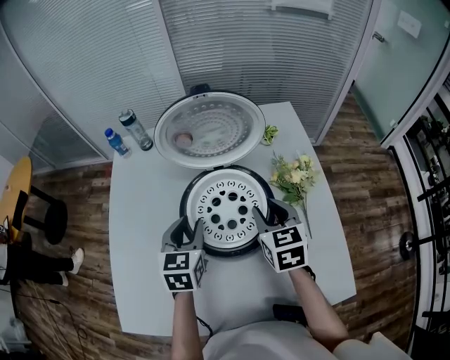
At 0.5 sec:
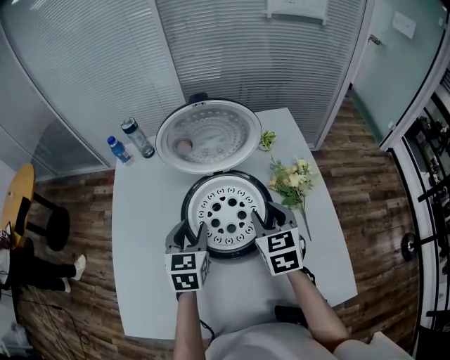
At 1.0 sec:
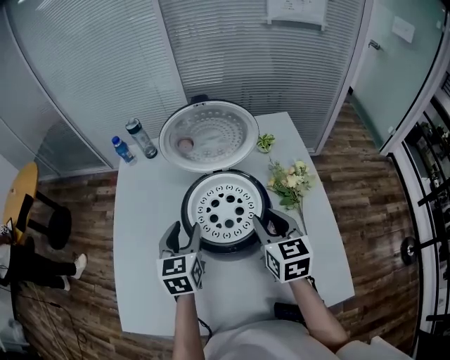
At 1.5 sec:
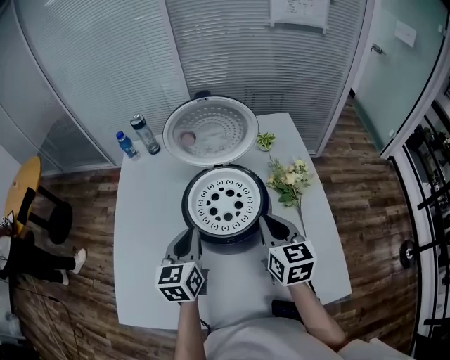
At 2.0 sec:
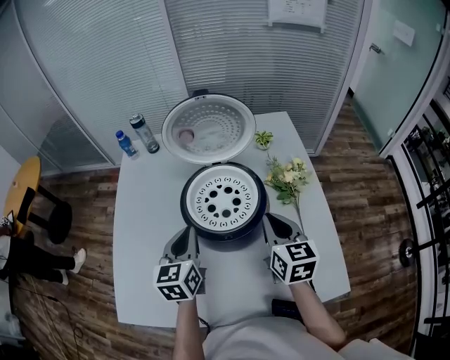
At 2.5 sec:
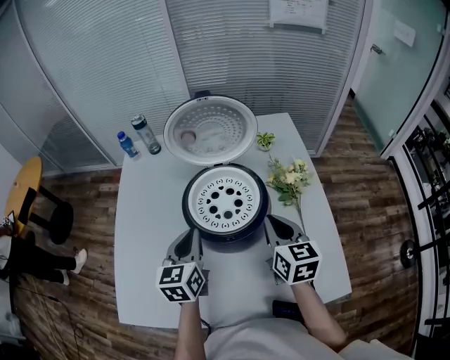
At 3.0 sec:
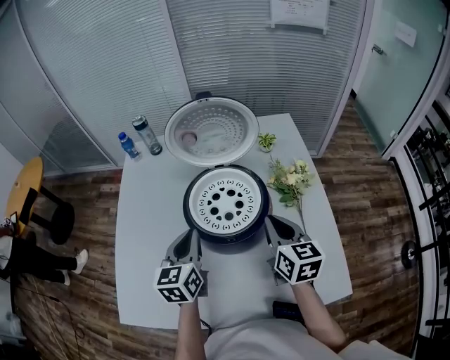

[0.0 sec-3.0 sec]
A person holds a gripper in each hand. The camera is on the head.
0.0 sec to 1.5 sec: Both grippers move backward, roughly 5 cm. The left gripper closes up; the right gripper closes.
1.5 sec to 3.0 sec: There are only small adjustments of the grippers.

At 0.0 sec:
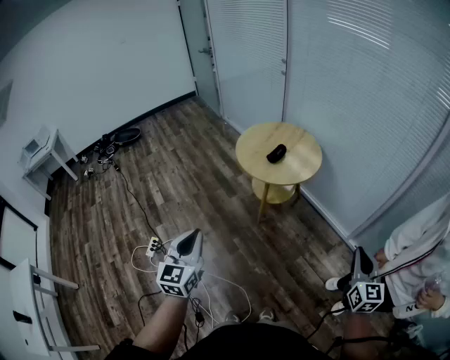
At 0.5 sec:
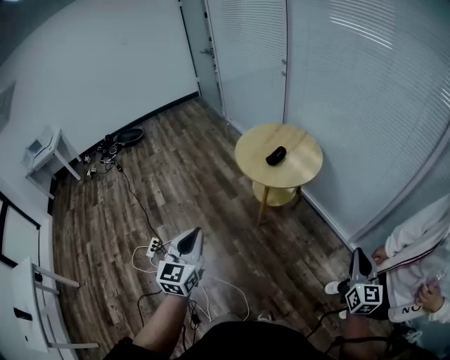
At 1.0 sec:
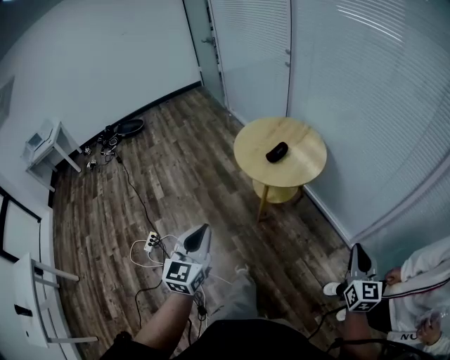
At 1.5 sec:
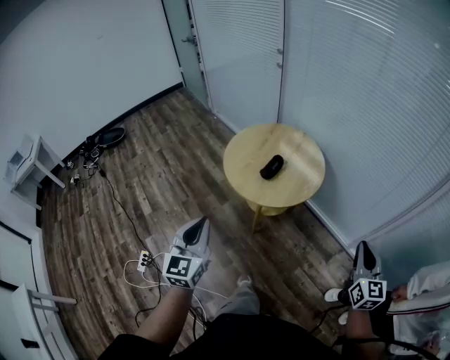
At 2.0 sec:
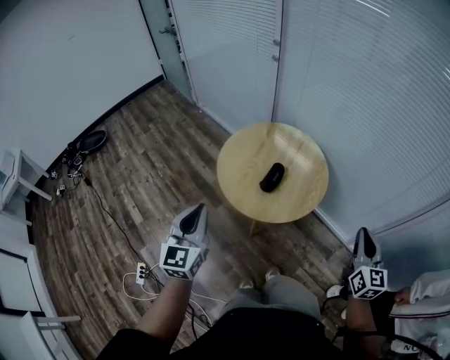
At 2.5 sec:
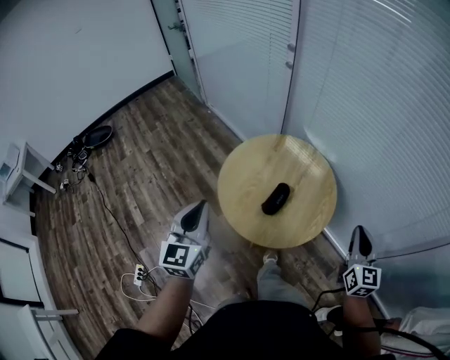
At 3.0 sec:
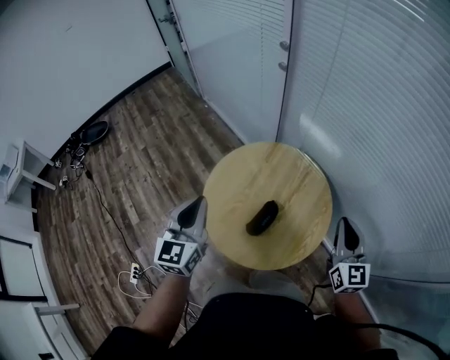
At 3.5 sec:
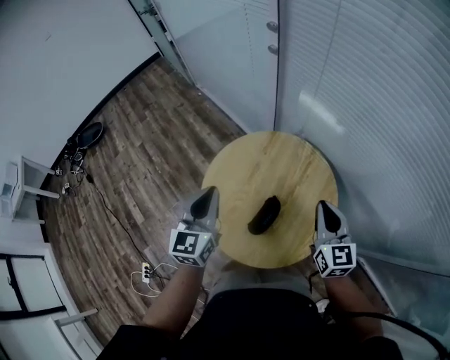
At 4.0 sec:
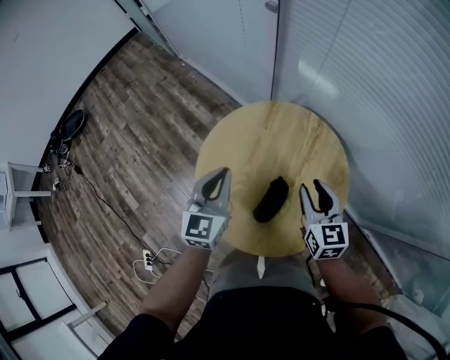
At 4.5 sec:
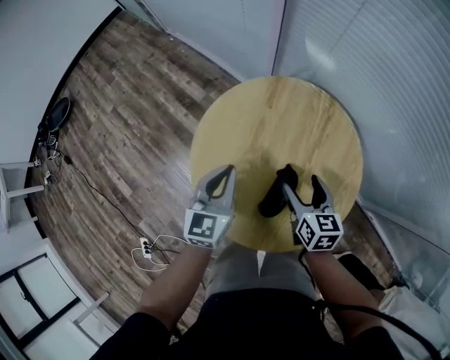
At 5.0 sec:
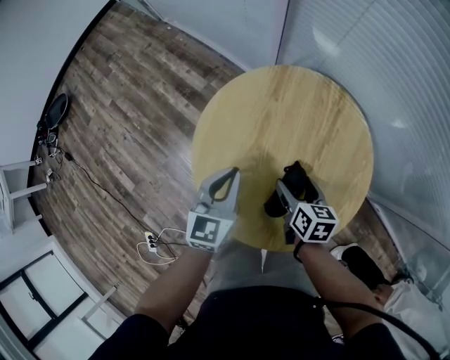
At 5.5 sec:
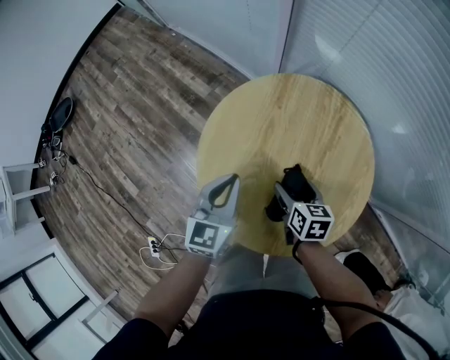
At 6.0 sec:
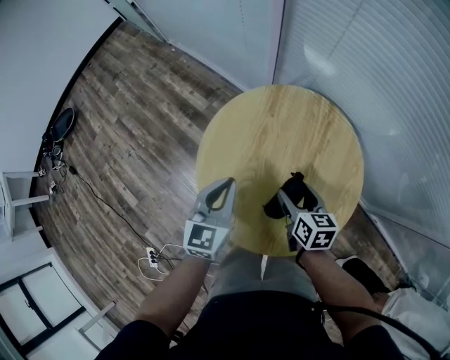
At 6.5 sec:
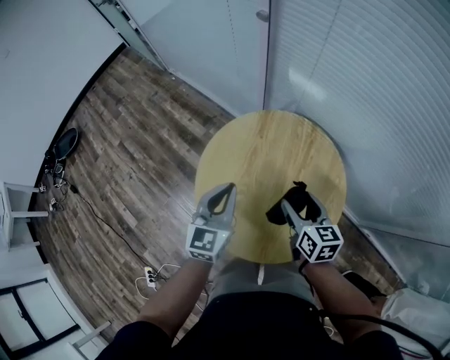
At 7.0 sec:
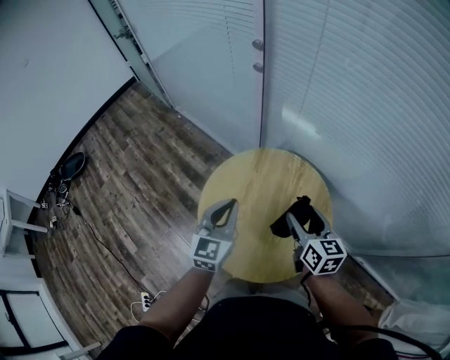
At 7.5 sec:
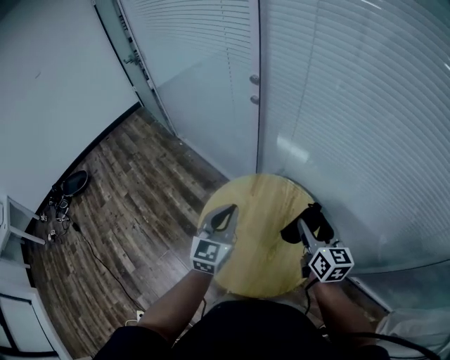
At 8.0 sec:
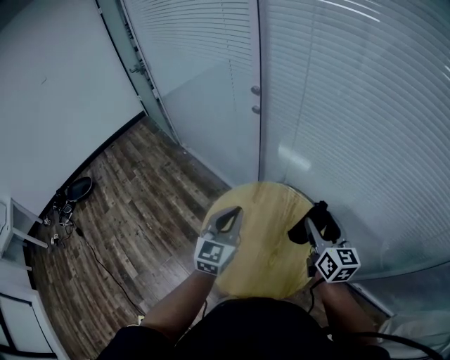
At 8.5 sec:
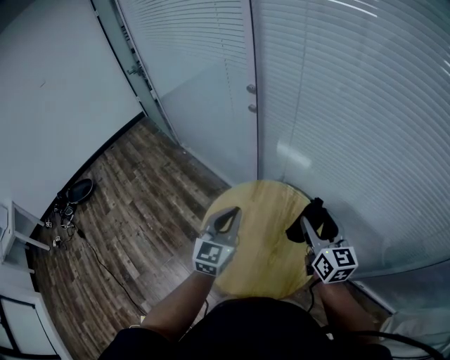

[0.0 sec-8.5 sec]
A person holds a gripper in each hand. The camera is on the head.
0.0 sec to 2.0 sec: The two grippers go about 40 cm forward.
2.0 sec to 4.0 sec: Both grippers are carried forward, some 40 cm. The right gripper turns by roughly 20 degrees.
4.0 sec to 6.5 sec: The left gripper goes downward and returns, about 15 cm each way. The right gripper goes downward and returns, approximately 20 cm each way, and opens its fingers.
6.5 sec to 8.5 sec: The left gripper is displaced upward by approximately 15 cm; the right gripper goes roughly 25 cm upward and to the right, and changes its angle by approximately 30 degrees.

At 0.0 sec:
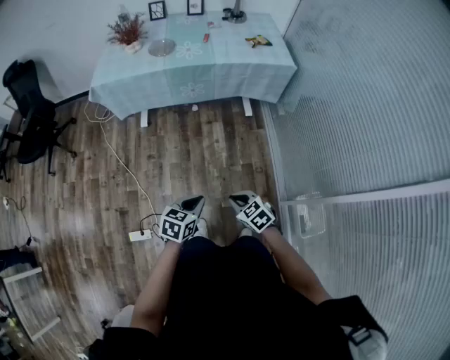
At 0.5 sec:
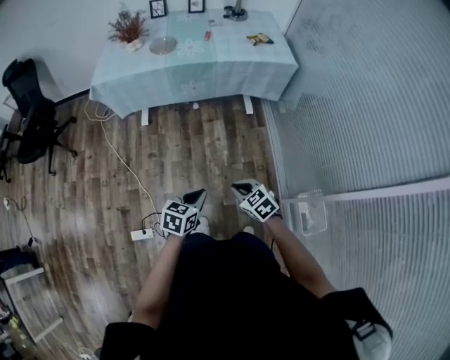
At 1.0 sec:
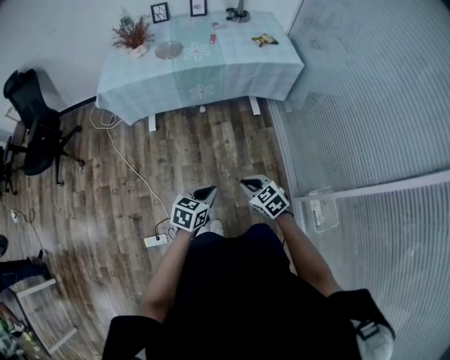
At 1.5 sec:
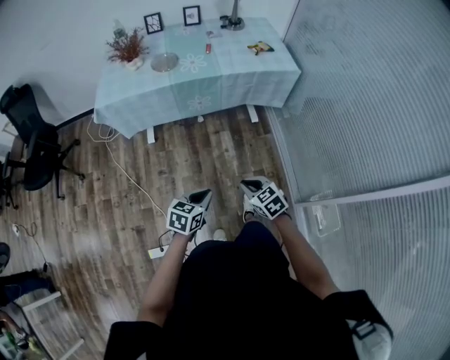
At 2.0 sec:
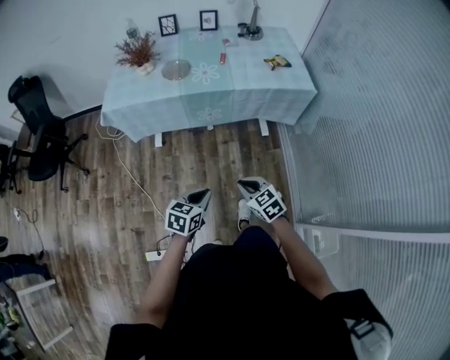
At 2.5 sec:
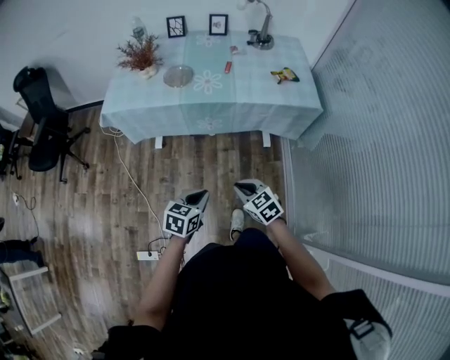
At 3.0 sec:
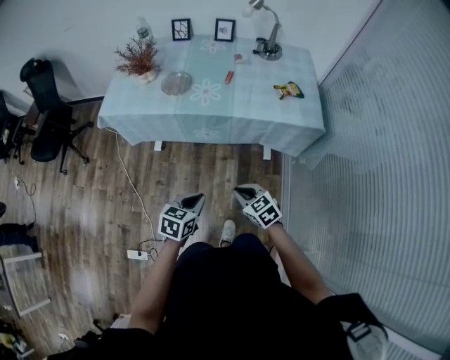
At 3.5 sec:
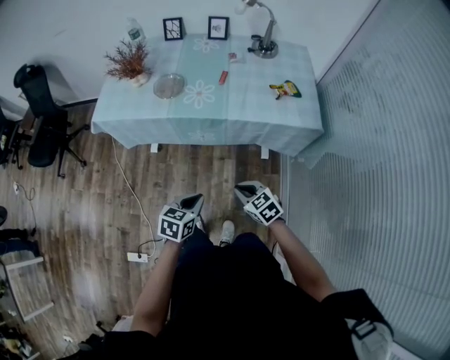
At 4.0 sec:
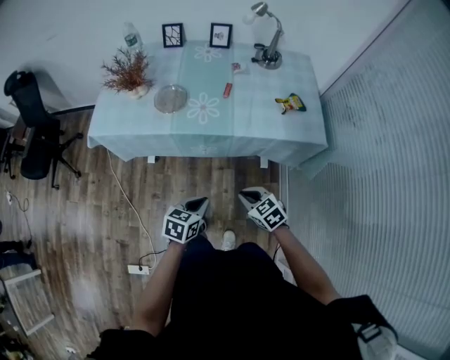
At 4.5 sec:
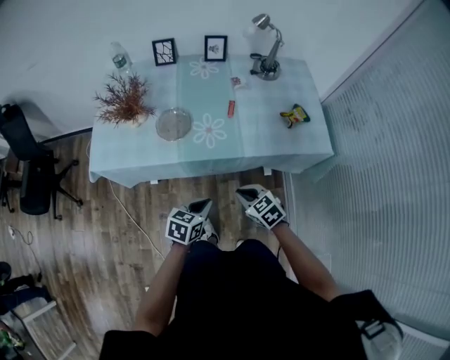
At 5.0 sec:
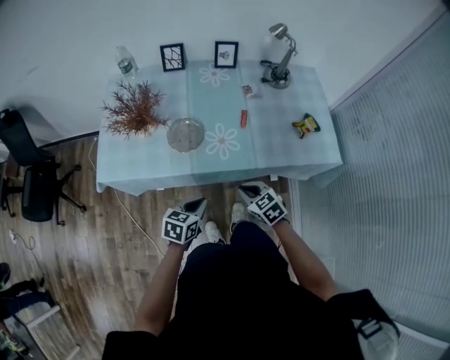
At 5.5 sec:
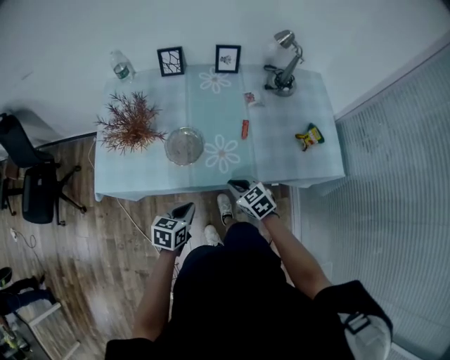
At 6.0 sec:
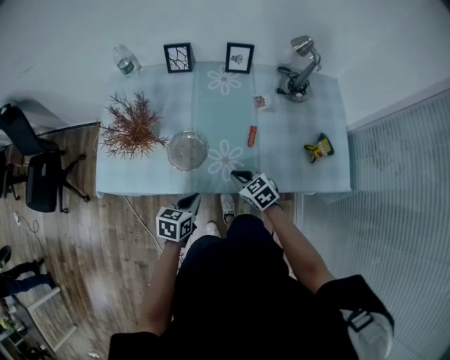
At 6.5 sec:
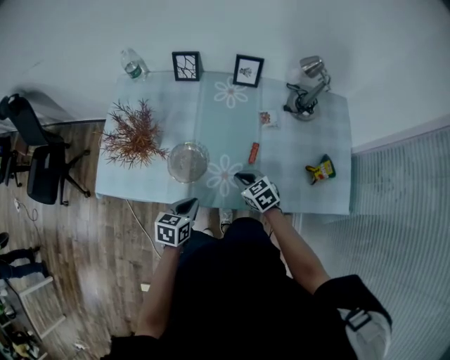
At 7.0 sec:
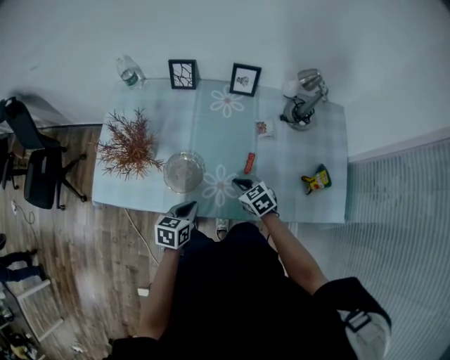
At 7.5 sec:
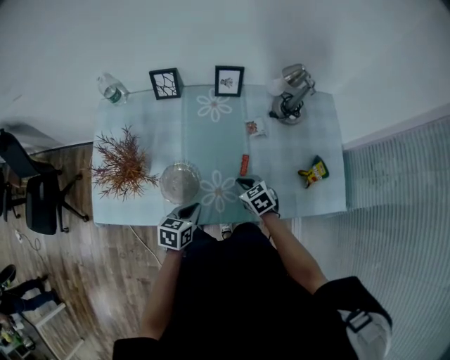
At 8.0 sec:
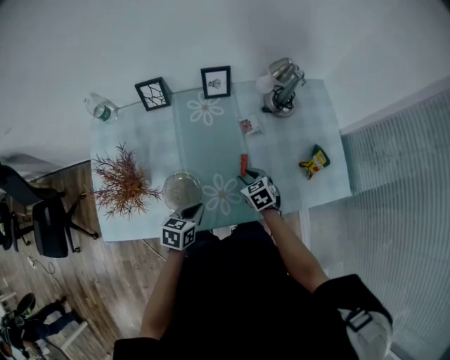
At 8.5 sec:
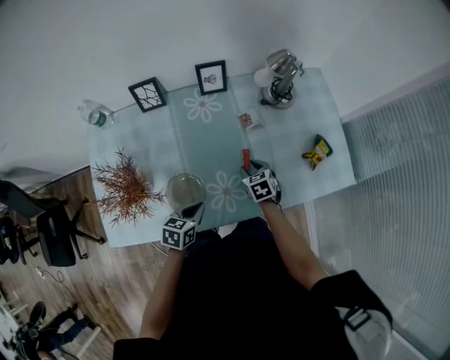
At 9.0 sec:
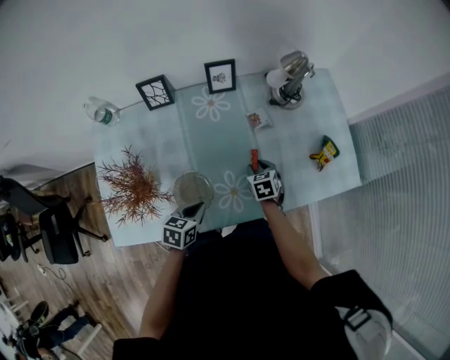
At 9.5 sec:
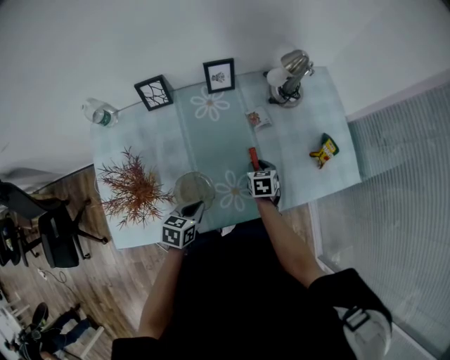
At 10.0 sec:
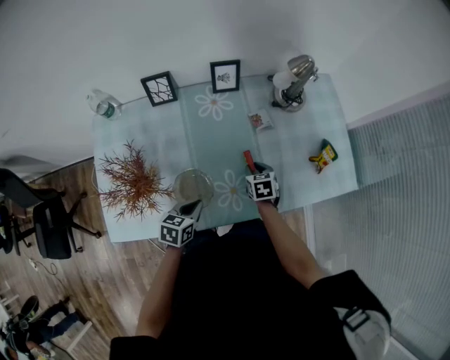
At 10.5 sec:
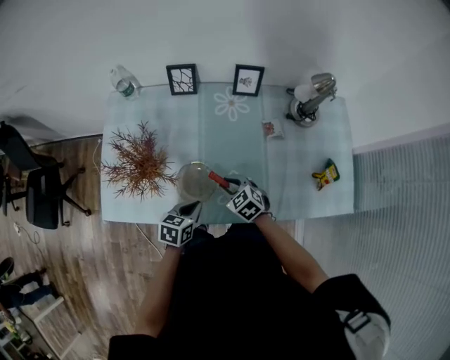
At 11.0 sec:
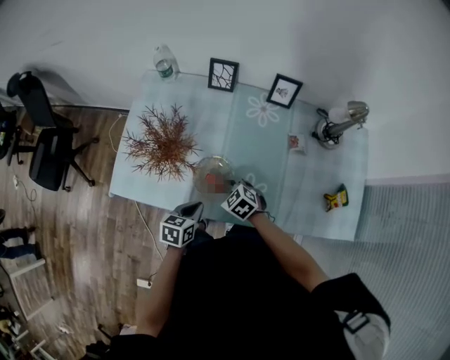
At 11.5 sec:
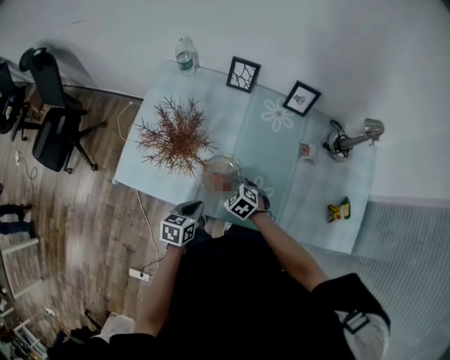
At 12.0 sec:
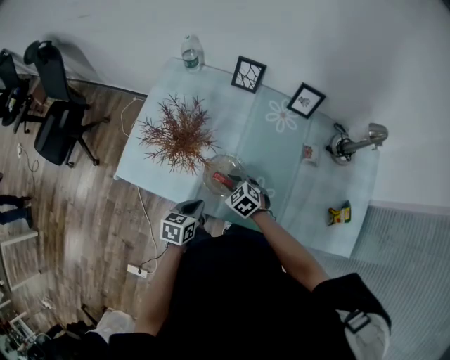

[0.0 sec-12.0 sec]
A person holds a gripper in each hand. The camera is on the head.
0.0 sec to 2.0 sec: Both grippers move forward, about 20 cm.
2.0 sec to 4.0 sec: The right gripper goes approximately 25 cm forward and to the right; the left gripper moves forward, roughly 20 cm.
4.0 sec to 6.0 sec: The left gripper moves forward and to the left, about 30 cm, while the right gripper goes roughly 35 cm forward.
6.0 sec to 8.0 sec: The right gripper moves forward and to the right, about 15 cm, swivels approximately 20 degrees, and opens its fingers. The left gripper travels forward by approximately 10 cm.
8.0 sec to 10.0 sec: The right gripper swivels roughly 20 degrees. The left gripper shifts by some 5 cm.
10.0 sec to 12.0 sec: The left gripper shifts by roughly 10 cm, and turns by roughly 30 degrees. Meanwhile the right gripper shifts by approximately 25 cm, and rolls counterclockwise, seen from behind, by some 60 degrees.

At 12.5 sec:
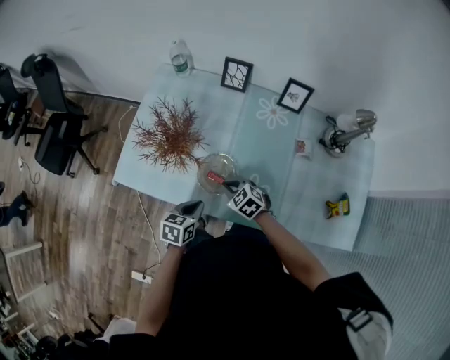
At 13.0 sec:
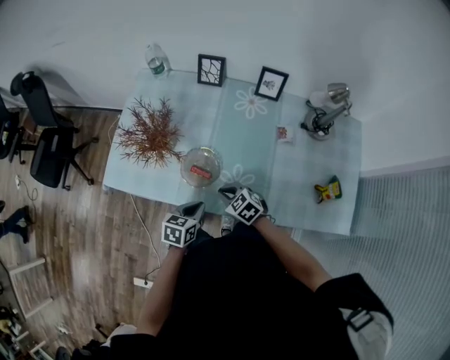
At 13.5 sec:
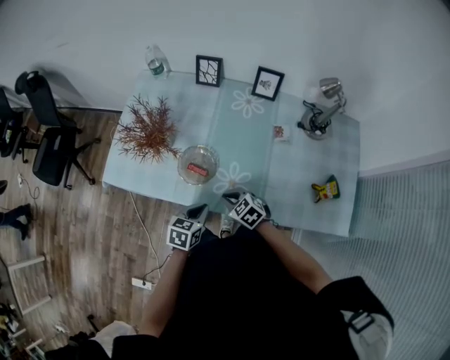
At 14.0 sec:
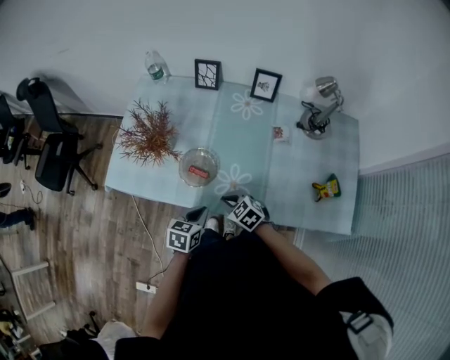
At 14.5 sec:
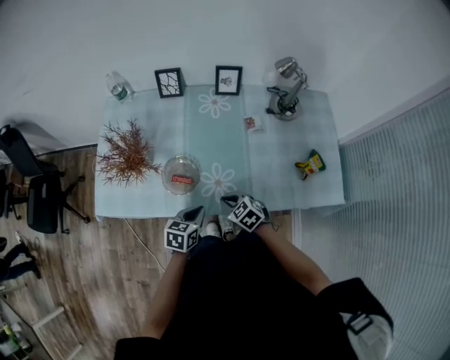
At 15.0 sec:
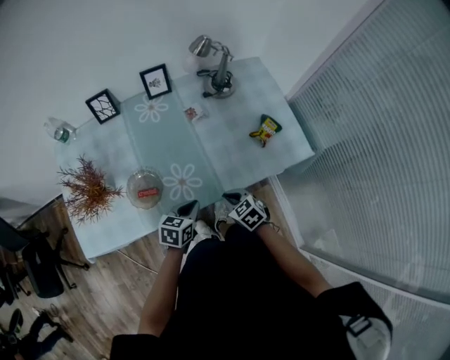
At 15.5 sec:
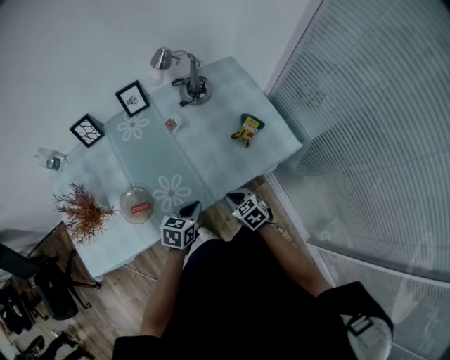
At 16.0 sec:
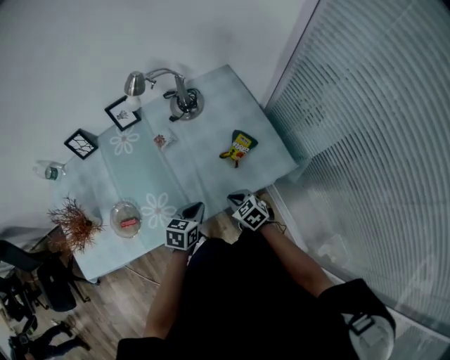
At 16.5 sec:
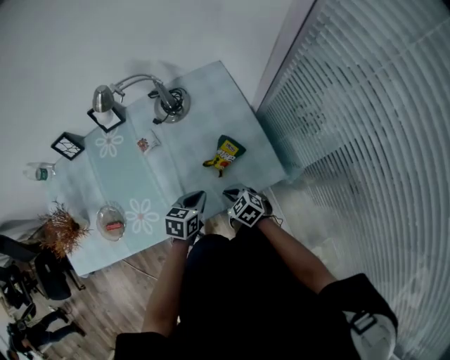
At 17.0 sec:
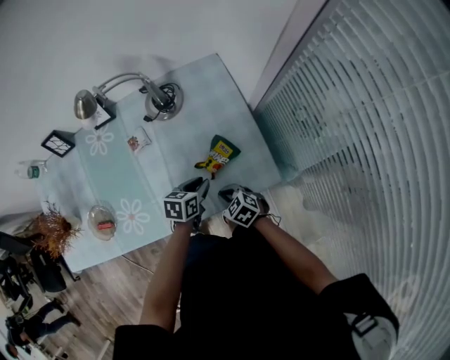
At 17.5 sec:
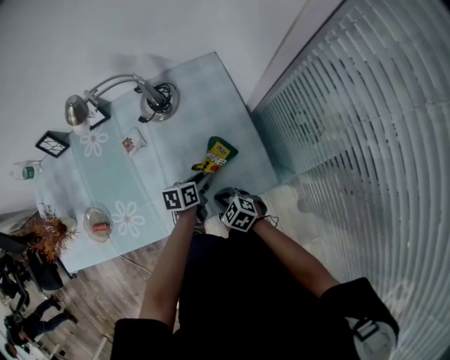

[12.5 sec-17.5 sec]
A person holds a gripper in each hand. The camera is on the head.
12.5 sec to 15.0 sec: The left gripper shifts by approximately 20 cm, and changes its angle by roughly 40 degrees; the right gripper ends up approximately 25 cm from where it was, and rotates some 50 degrees.
15.0 sec to 17.5 sec: The left gripper heads to the right and forward, covering about 35 cm, turns by roughly 30 degrees, and opens; the right gripper travels to the right and forward by approximately 25 cm.
